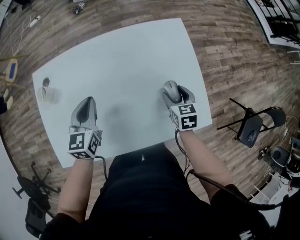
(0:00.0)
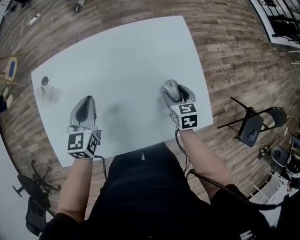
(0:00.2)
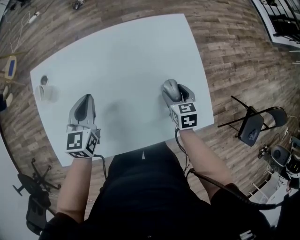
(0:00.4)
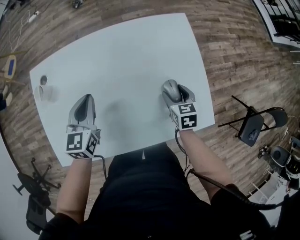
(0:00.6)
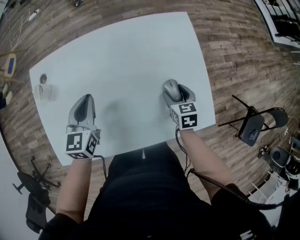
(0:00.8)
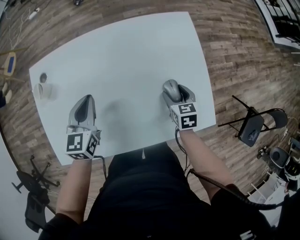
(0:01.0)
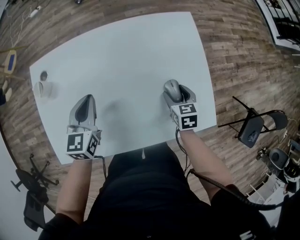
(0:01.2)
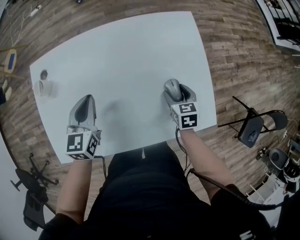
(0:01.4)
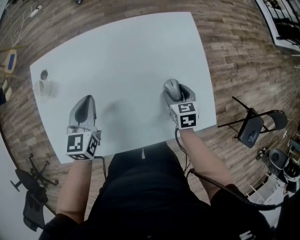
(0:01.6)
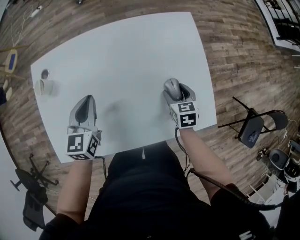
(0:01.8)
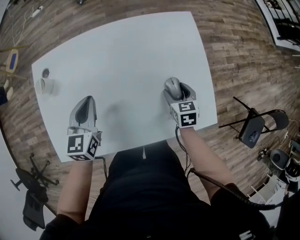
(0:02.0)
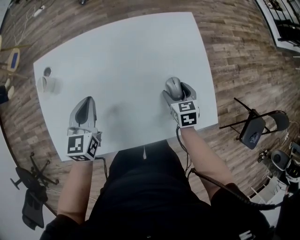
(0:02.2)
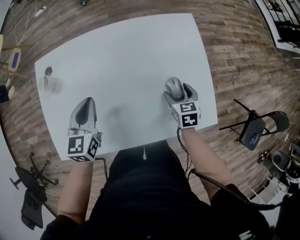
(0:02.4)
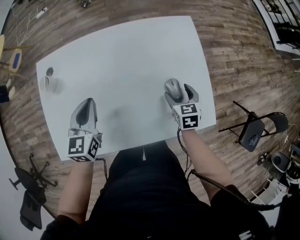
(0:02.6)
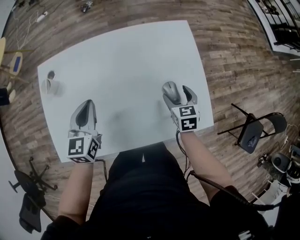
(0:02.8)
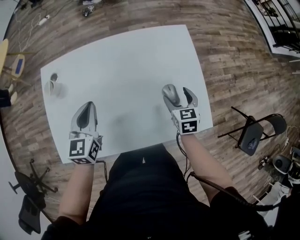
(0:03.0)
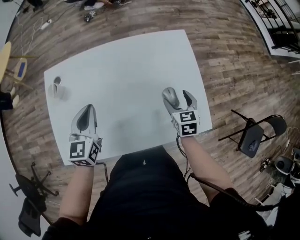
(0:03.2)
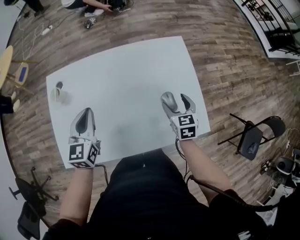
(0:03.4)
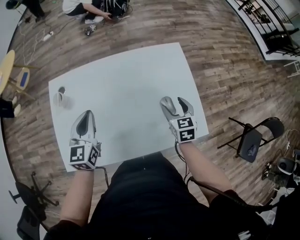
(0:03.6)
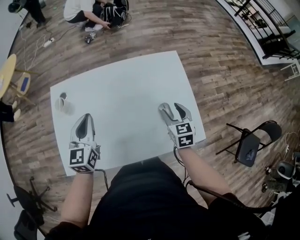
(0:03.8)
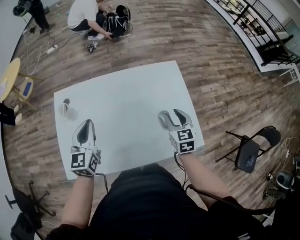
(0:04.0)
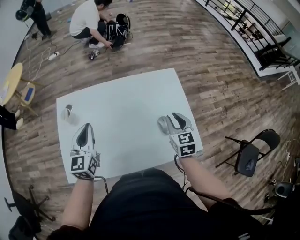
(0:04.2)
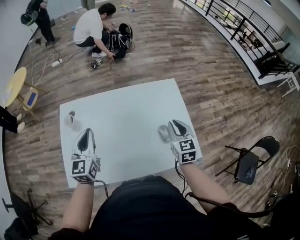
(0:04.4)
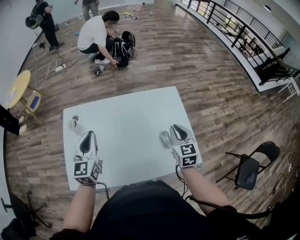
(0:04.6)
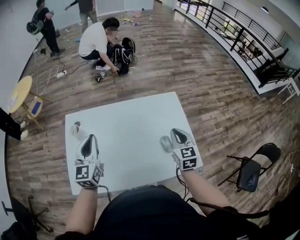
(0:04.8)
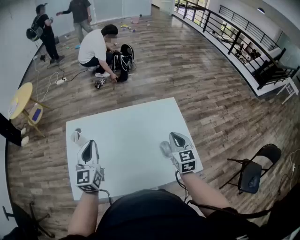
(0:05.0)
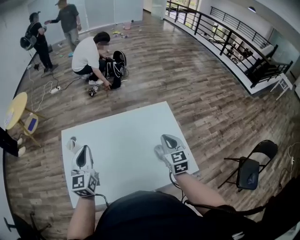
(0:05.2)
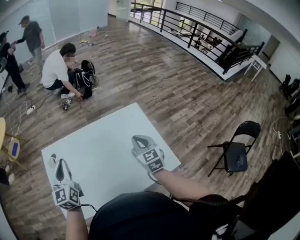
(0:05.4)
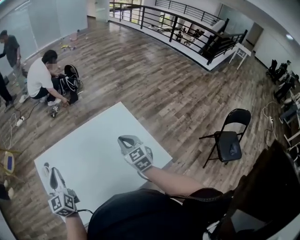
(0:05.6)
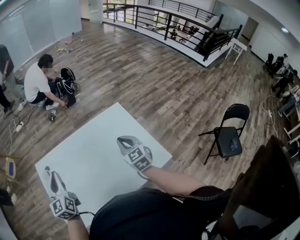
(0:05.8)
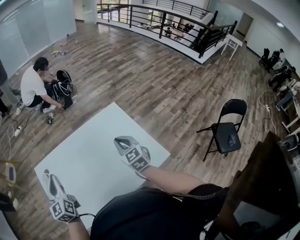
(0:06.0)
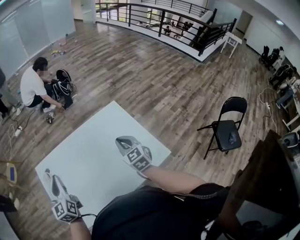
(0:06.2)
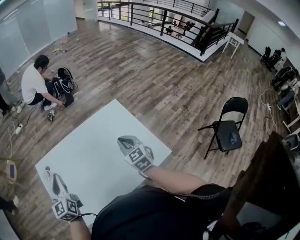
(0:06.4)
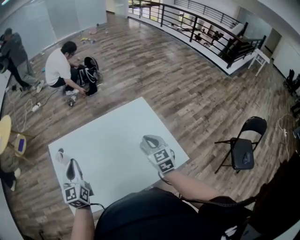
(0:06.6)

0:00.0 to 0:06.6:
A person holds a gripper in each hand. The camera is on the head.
0:00.0 to 0:01.6: The grippers make only small movements.
0:01.6 to 0:03.2: The right gripper shifts some 5 cm upward.
0:03.2 to 0:05.0: The left gripper heads upward, covering roughly 10 cm, while the right gripper travels upward by some 15 cm, turns by about 20 degrees, and closes up.
0:05.0 to 0:06.6: The grippers stay close to where they were, moving slightly.

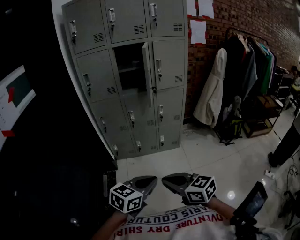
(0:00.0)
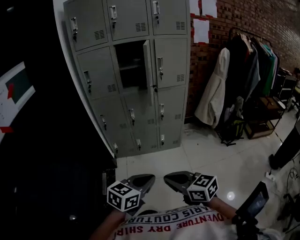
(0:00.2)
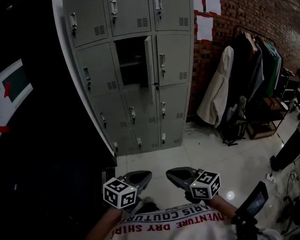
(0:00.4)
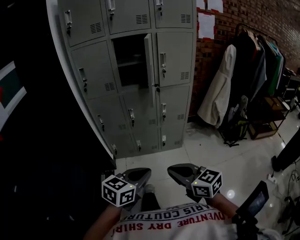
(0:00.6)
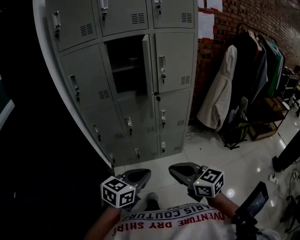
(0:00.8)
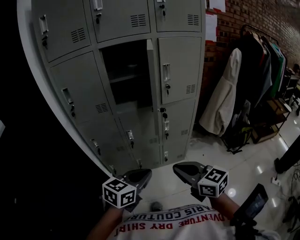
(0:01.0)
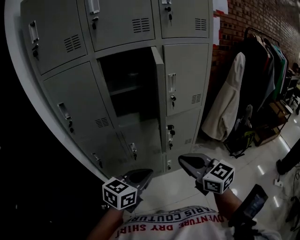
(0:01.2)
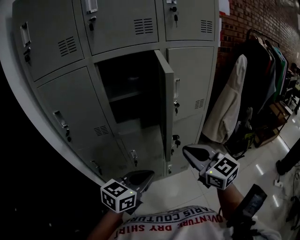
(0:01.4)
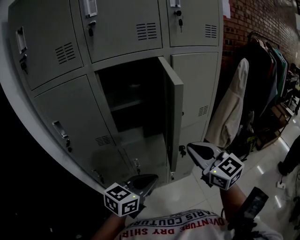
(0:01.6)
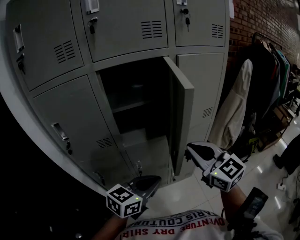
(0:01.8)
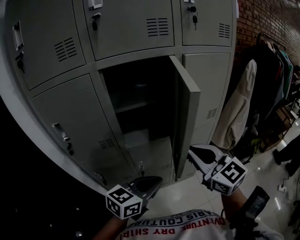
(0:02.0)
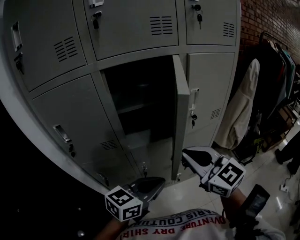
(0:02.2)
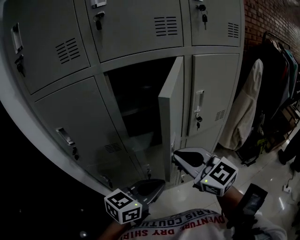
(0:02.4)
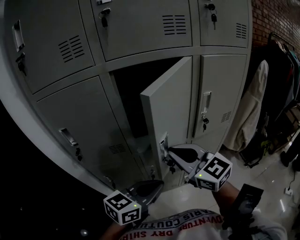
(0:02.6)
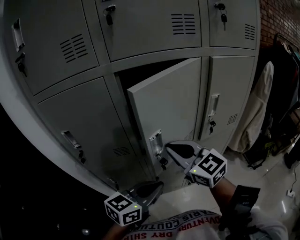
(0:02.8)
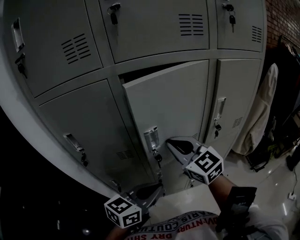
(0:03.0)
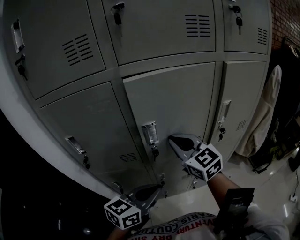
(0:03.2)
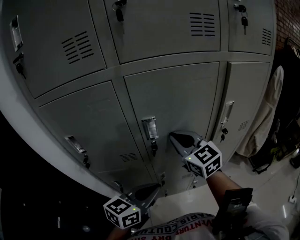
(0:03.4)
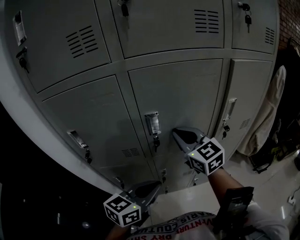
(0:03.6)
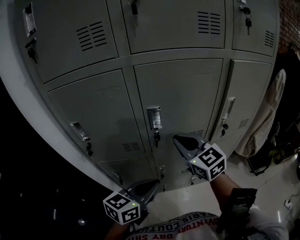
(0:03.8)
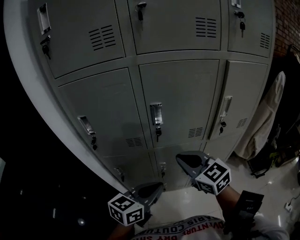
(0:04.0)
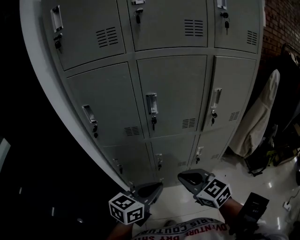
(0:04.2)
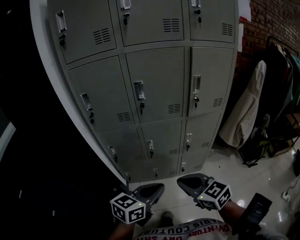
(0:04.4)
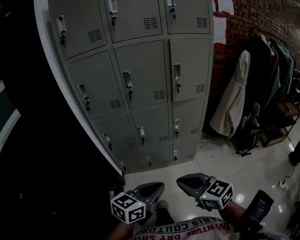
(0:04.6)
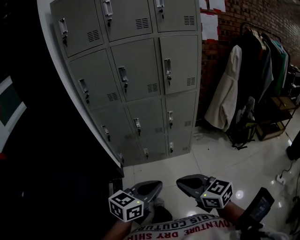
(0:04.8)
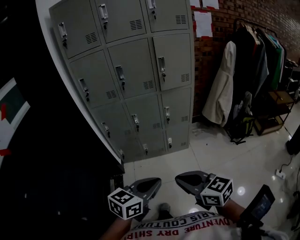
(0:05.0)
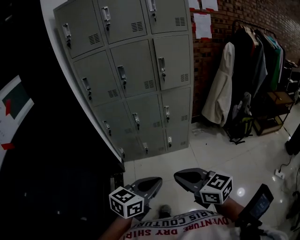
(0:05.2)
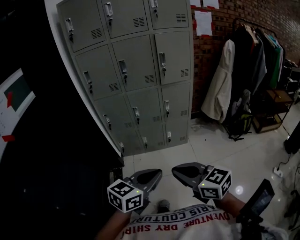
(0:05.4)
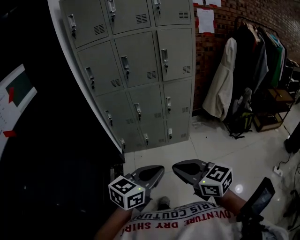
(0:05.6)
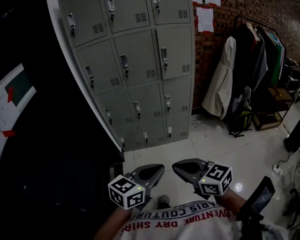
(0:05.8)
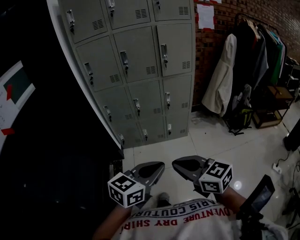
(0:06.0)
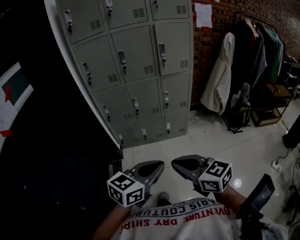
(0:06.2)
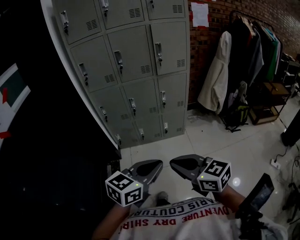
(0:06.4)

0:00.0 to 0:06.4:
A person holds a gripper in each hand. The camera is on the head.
0:00.0 to 0:01.6: Both grippers are carried forward, about 50 cm. The right gripper swivels approximately 40 degrees.
0:01.6 to 0:03.2: The left gripper is displaced to the left and forward by roughly 15 cm. The right gripper travels to the left and forward by approximately 25 cm.
0:03.2 to 0:04.8: The pair of grippers is taken backward, some 50 cm. The right gripper changes its angle by about 30 degrees.
0:04.8 to 0:06.4: The two grippers go approximately 10 cm backward.

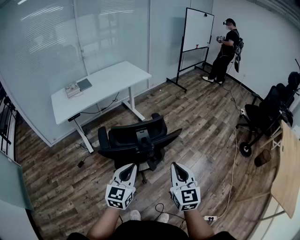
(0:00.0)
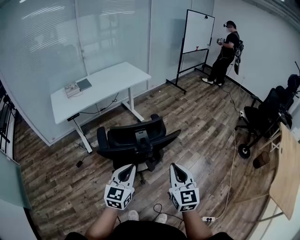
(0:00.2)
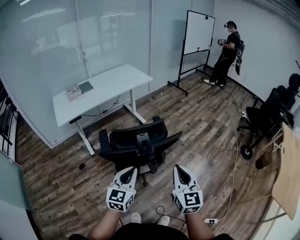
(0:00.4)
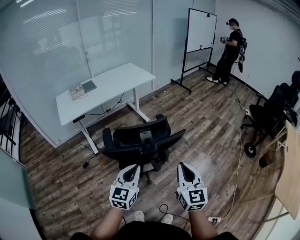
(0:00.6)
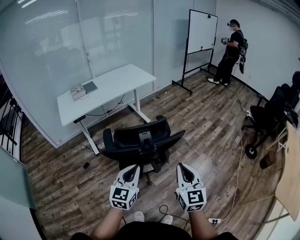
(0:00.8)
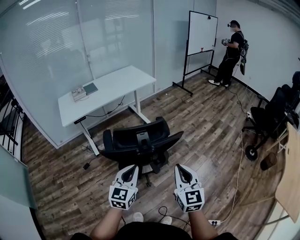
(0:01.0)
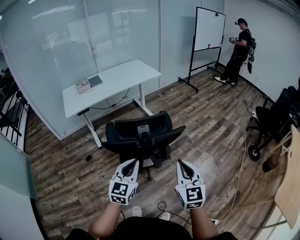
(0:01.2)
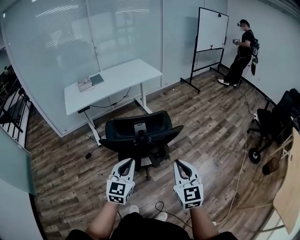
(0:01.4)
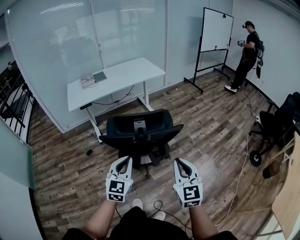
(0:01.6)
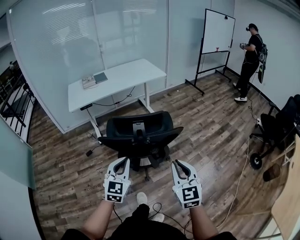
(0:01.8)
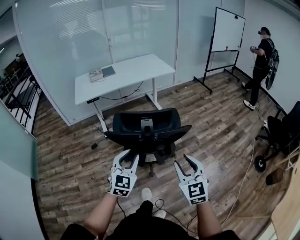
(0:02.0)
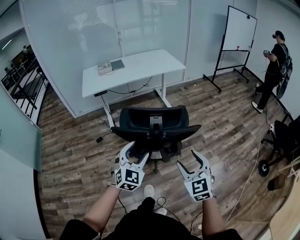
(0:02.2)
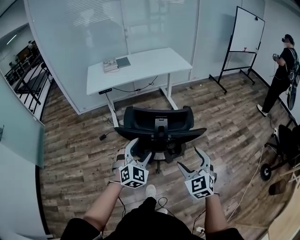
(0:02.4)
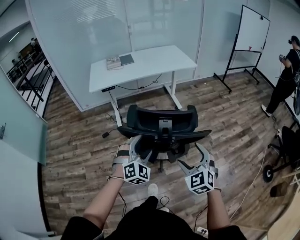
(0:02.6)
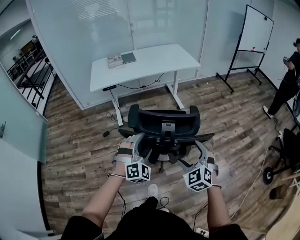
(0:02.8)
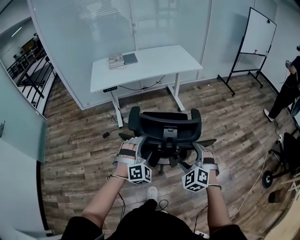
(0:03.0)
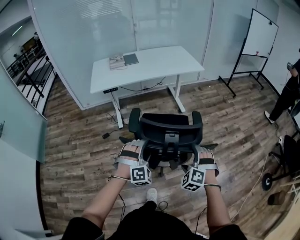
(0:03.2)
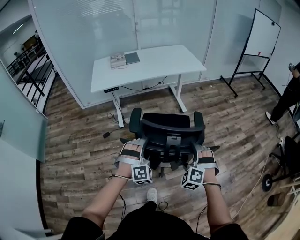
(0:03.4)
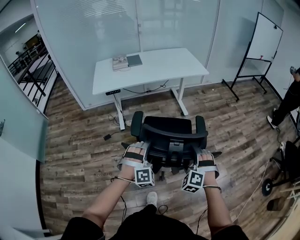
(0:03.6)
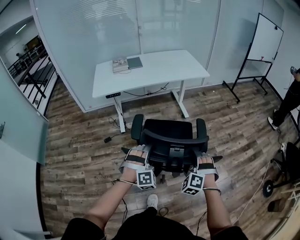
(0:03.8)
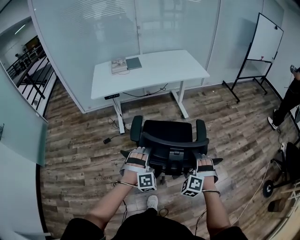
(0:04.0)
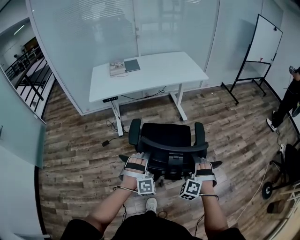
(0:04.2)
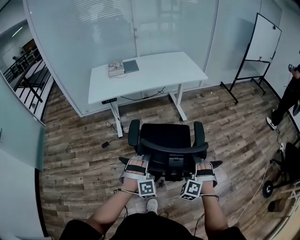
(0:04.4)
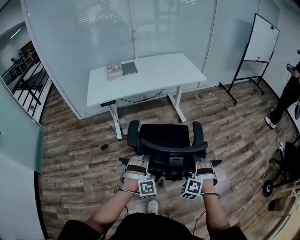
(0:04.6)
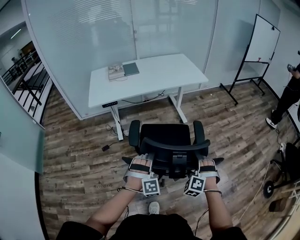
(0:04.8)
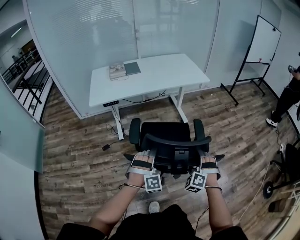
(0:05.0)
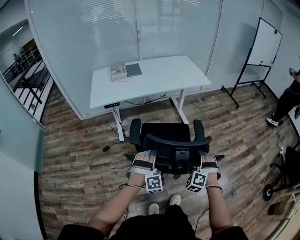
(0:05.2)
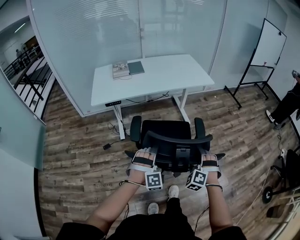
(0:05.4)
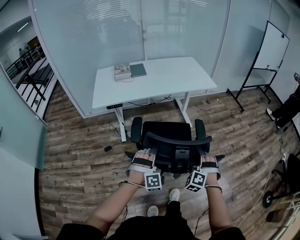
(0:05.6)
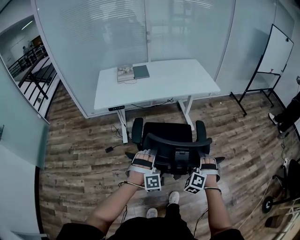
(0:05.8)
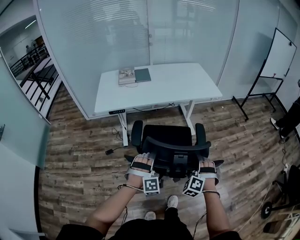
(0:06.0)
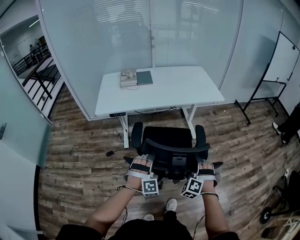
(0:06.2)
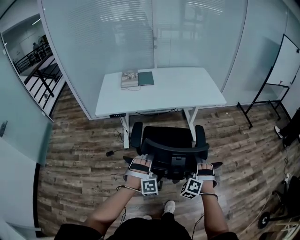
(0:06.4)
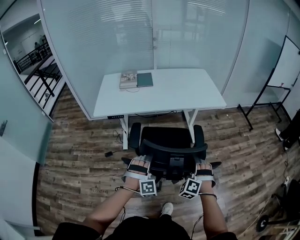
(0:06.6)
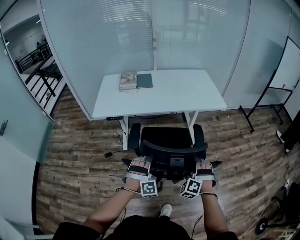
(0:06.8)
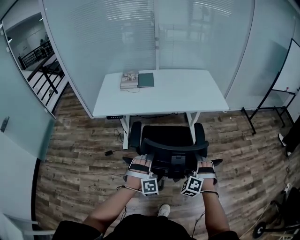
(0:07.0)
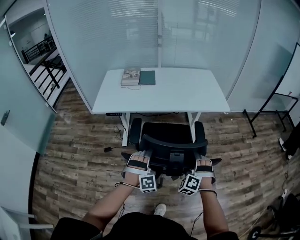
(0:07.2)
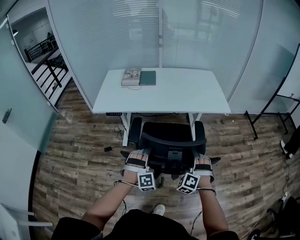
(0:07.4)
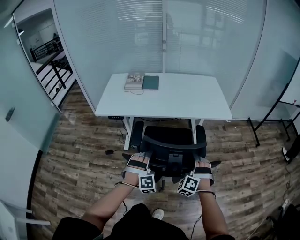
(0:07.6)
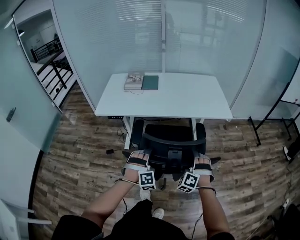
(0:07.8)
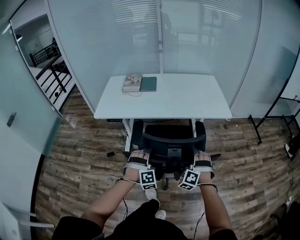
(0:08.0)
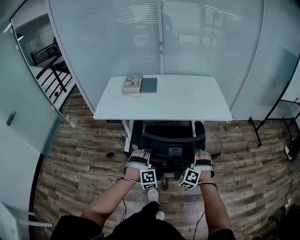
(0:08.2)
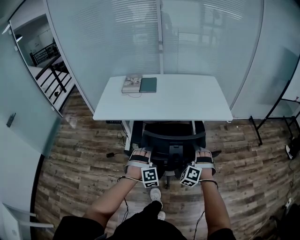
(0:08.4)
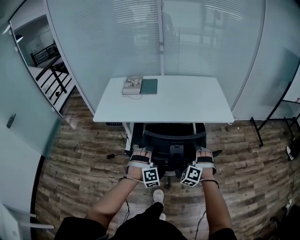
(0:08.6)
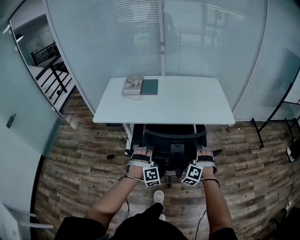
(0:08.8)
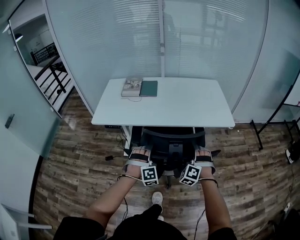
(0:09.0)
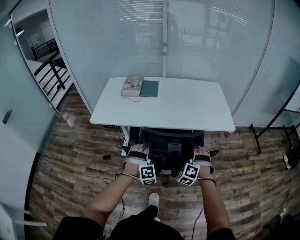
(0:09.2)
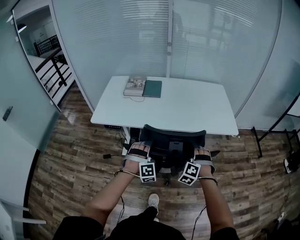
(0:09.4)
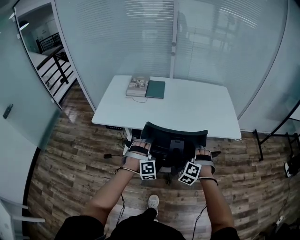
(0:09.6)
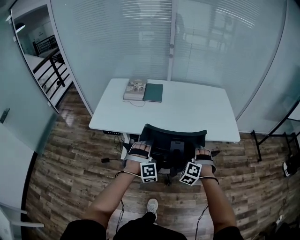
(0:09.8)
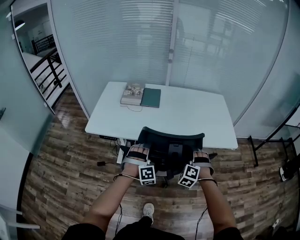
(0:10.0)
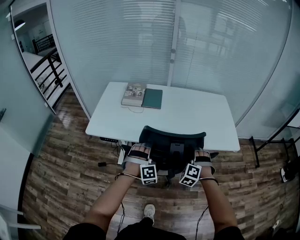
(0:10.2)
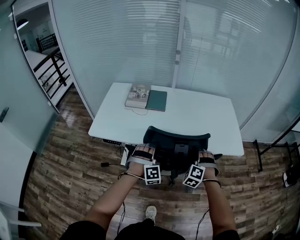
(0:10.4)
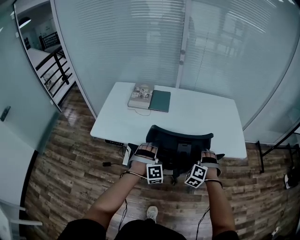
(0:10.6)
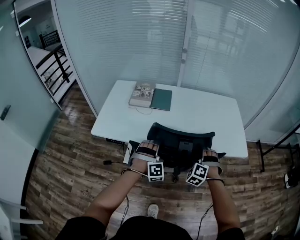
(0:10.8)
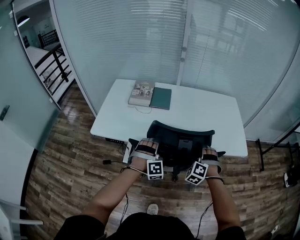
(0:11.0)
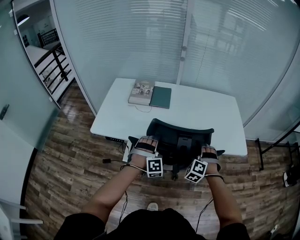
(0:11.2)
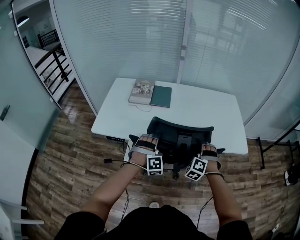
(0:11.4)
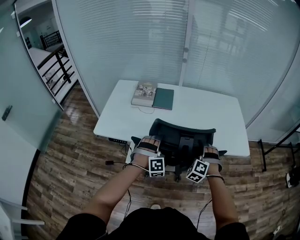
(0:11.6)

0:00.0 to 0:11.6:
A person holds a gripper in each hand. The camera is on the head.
0:00.0 to 0:01.4: The grippers make only small movements.
0:01.4 to 0:02.8: Both grippers move forward and downward, roughly 15 cm. The left gripper rolls clockwise, seen from behind, by about 50 degrees, and opens its fingers. The right gripper changes its angle by some 40 degrees, and opens up.
0:02.8 to 0:04.4: Both grippers move forward and downward, about 15 cm. The right gripper swivels about 40 degrees.
0:04.4 to 0:05.8: The two grippers go some 15 cm forward.
0:05.8 to 0:07.2: Both grippers move forward, roughly 15 cm.
0:07.2 to 0:08.8: Both grippers move forward, some 15 cm.
0:08.8 to 0:10.2: Both grippers travel together forward, roughly 15 cm.
0:10.2 to 0:11.6: The two grippers go approximately 5 cm forward.
